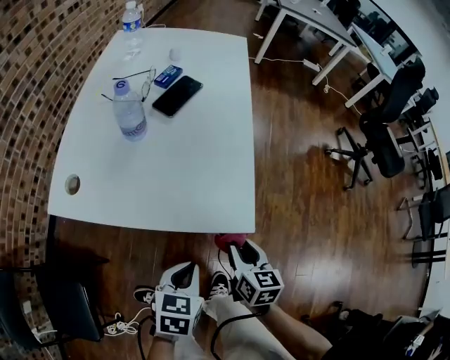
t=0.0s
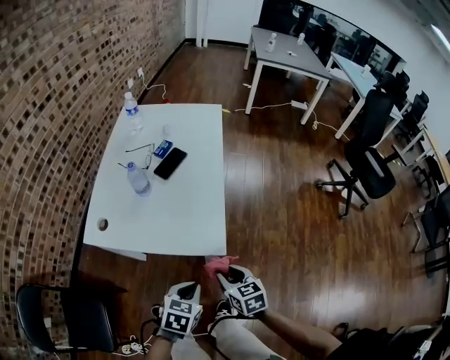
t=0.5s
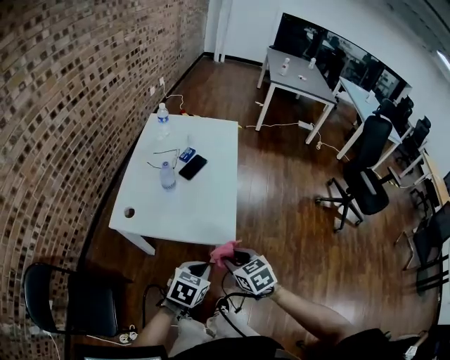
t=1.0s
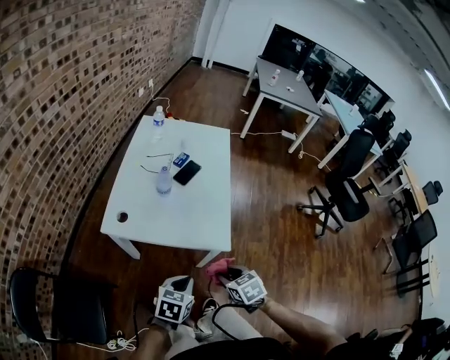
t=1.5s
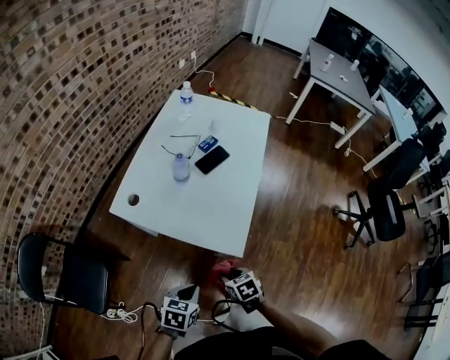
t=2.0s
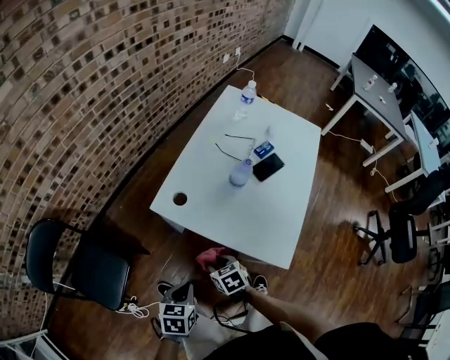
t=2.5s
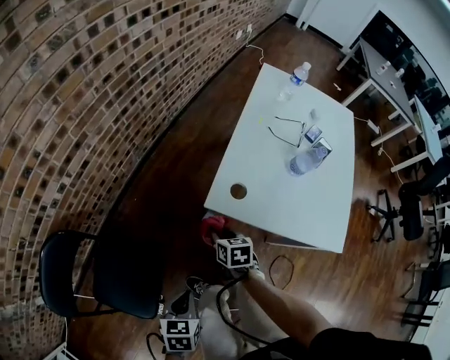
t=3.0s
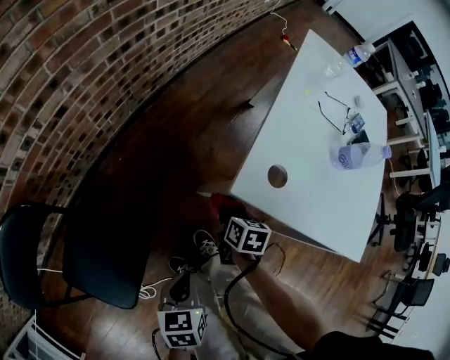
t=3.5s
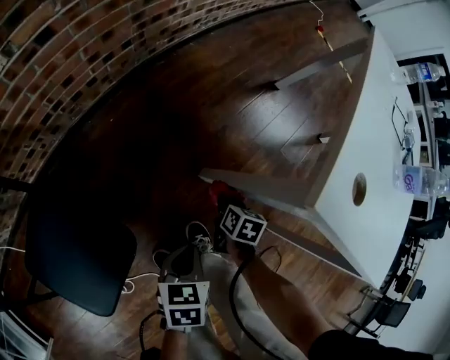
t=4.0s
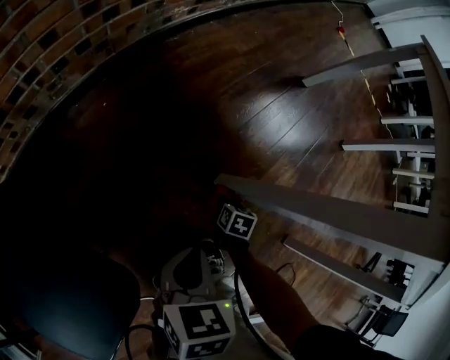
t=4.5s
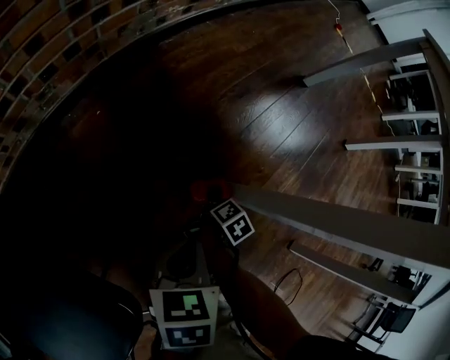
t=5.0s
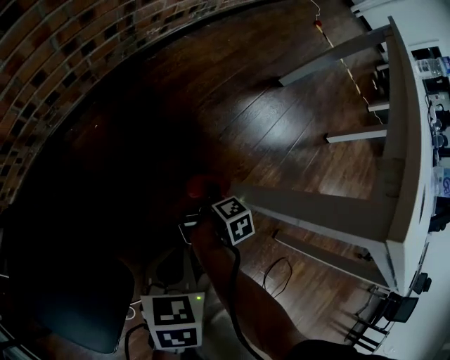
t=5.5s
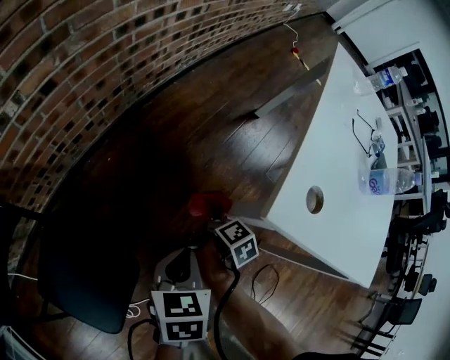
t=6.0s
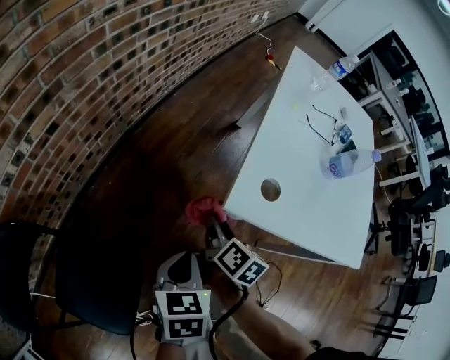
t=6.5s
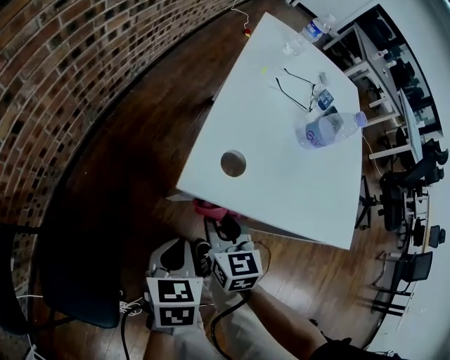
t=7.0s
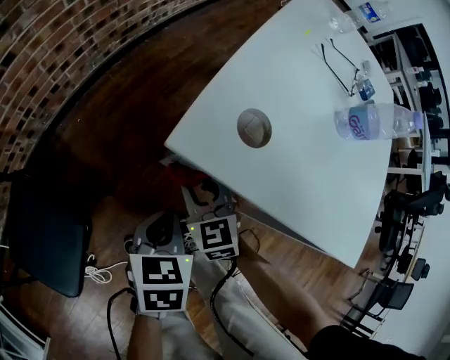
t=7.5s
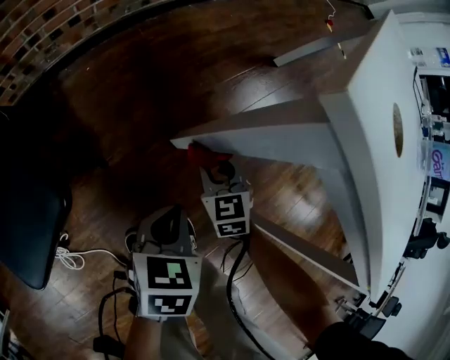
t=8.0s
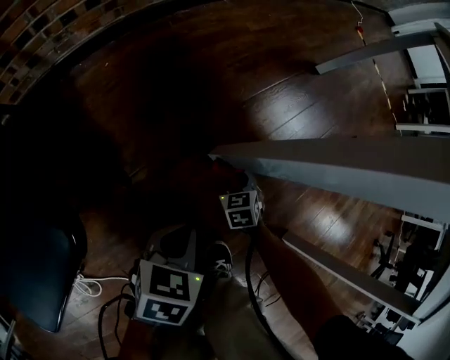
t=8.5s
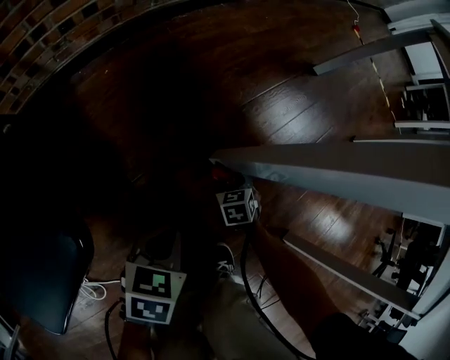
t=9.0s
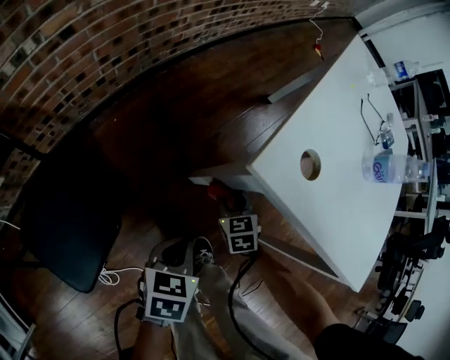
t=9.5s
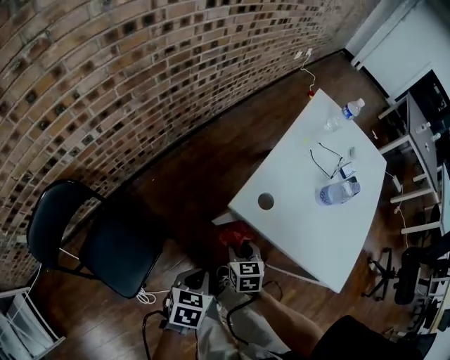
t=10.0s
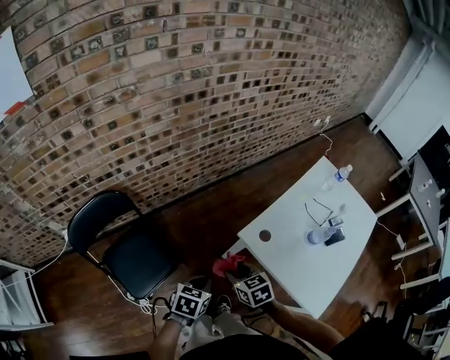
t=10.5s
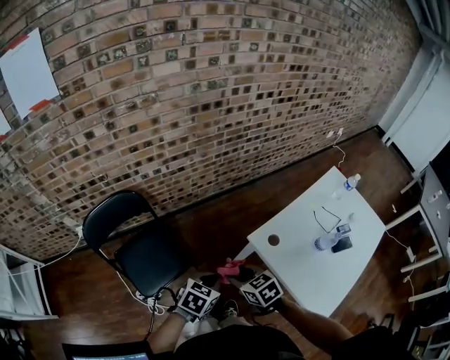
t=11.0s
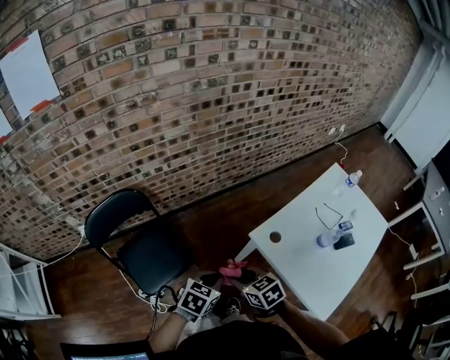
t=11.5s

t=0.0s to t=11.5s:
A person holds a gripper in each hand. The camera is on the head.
t=0.0s to t=2.0s: The two grippers go approximately 15 cm upward. The right gripper changes its angle by roughly 50 degrees.
t=2.0s to t=4.0s: Both grippers are carried to the left and forward, some 50 cm. The two grippers go approximately 40 cm downward. The left gripper rotates about 30 degrees, while the right gripper rotates approximately 20 degrees.
t=4.0s to t=6.0s: The right gripper reaches about 30 cm downward, then returns, and rotates around the line of its fingers by about 50 degrees, clockwise from behind. The left gripper is displaced upward and forward by approximately 15 cm.
t=6.0s to t=7.5s: The right gripper heads upward and to the right, covering roughly 10 cm, and rolls counterclockwise, seen from behind, by roughly 90 degrees; the left gripper shifts about 15 cm to the right.
t=7.5s to t=9.5s: The left gripper moves backward and to the left, about 10 cm, and moves about 35 cm downward and comes back, while the right gripper goes downward and returns, approximately 50 cm each way.
t=9.5s to t=11.5s: Both grippers move upward, roughly 40 cm. The right gripper turns by about 40 degrees.

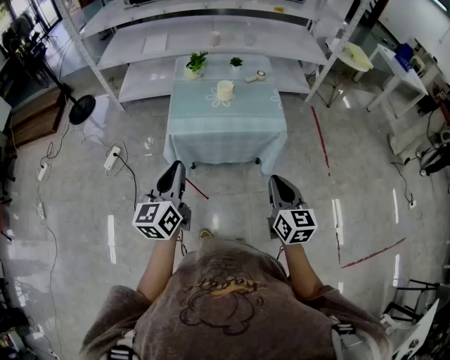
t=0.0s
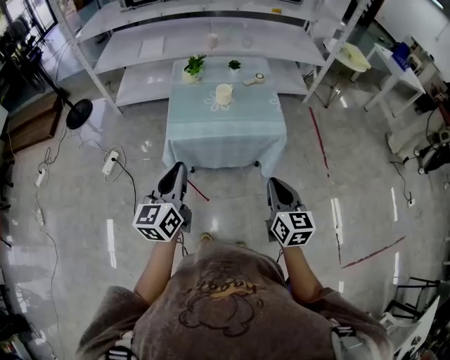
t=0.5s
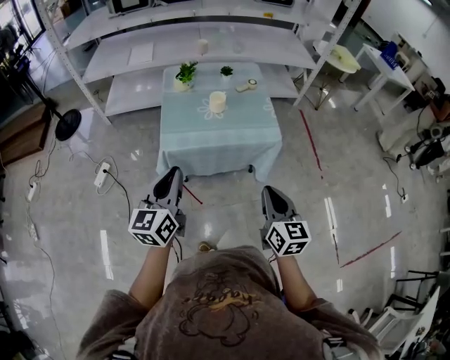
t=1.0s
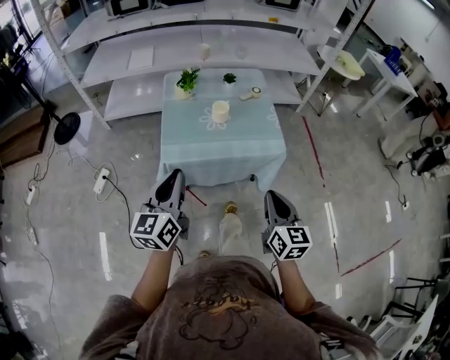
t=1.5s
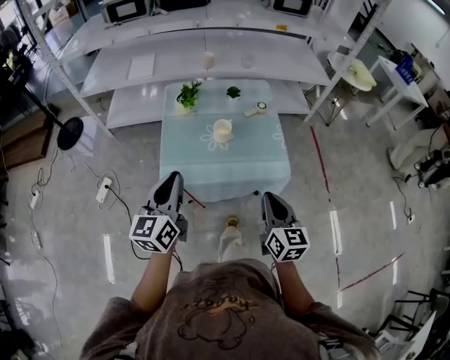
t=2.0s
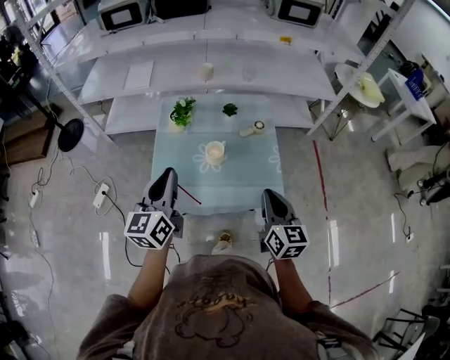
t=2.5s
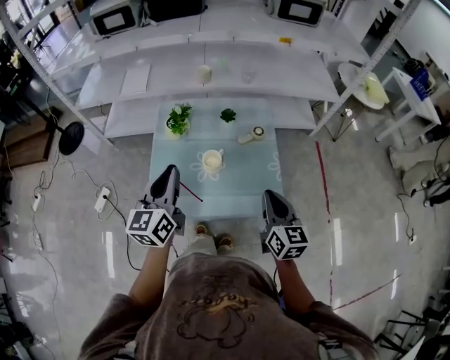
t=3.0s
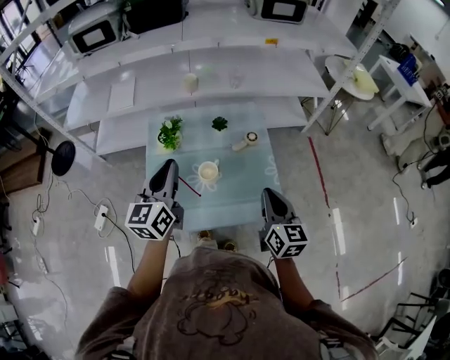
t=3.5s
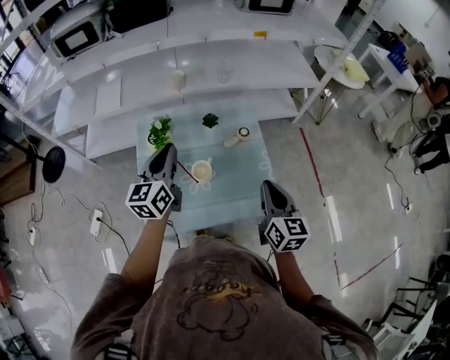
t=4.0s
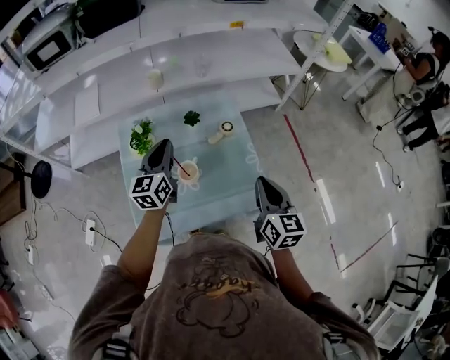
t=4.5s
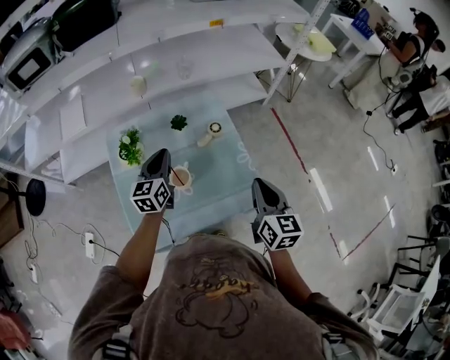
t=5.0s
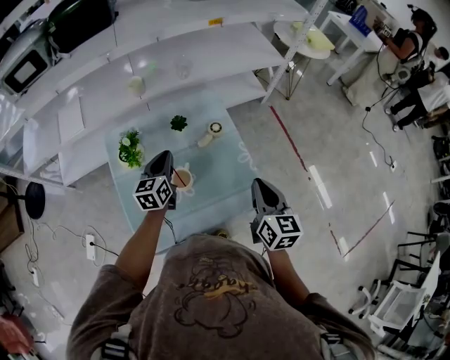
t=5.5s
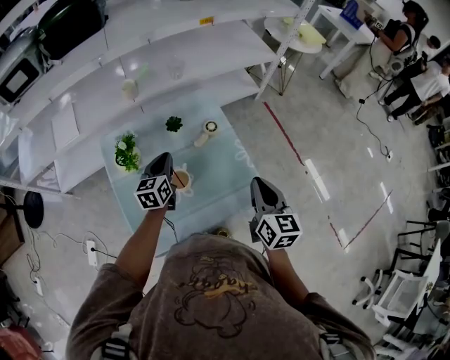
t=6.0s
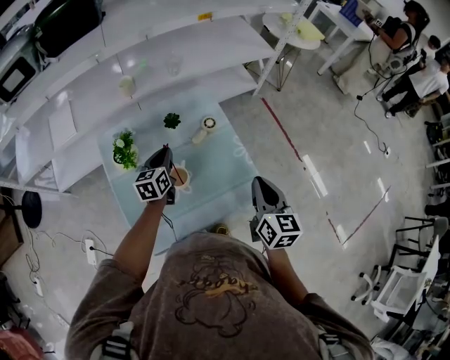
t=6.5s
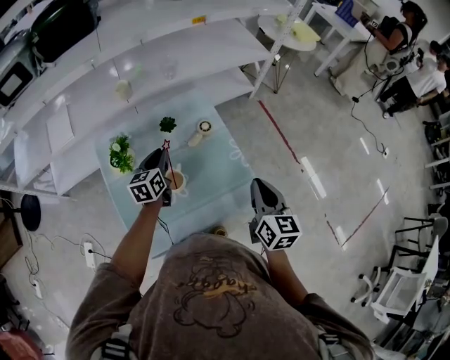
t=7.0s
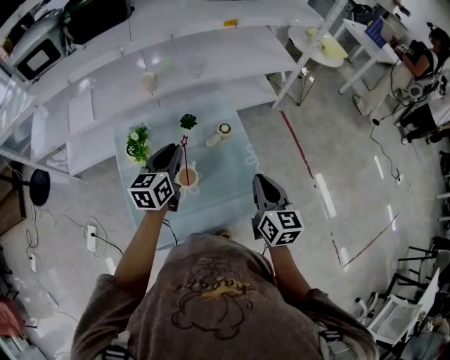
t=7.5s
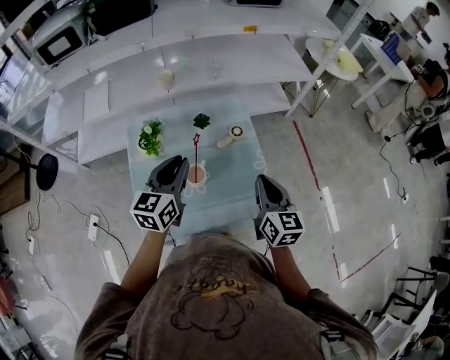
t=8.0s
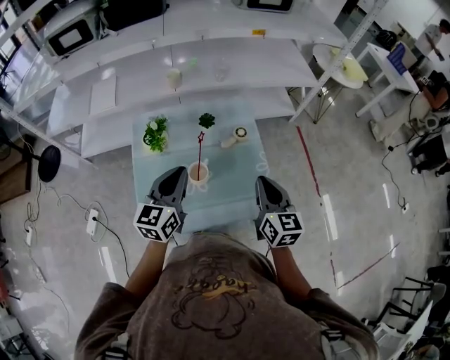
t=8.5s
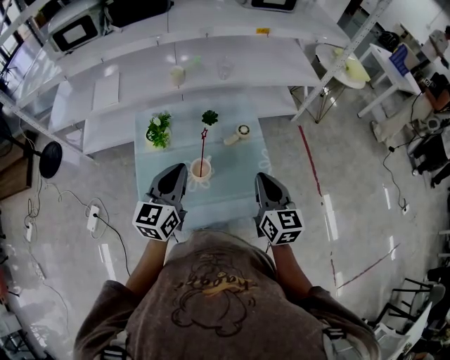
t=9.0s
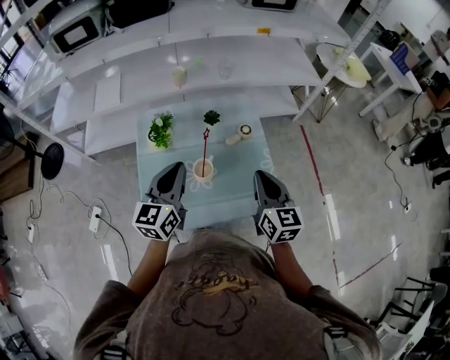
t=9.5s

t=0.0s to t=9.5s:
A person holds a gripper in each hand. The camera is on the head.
t=0.0s to t=2.0s: The grippers both shift forward by about 20 cm.
t=2.0s to t=4.0s: The grippers both shift forward by some 30 cm.
t=4.0s to t=5.5s: The left gripper travels downward and forward by about 15 cm.
t=5.5s to t=7.5s: The left gripper moves upward, some 5 cm.
t=7.5s to t=9.5s: The left gripper travels backward and upward by about 10 cm; the right gripper is displaced to the left by roughly 5 cm.

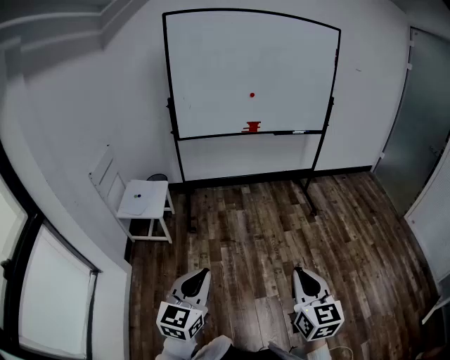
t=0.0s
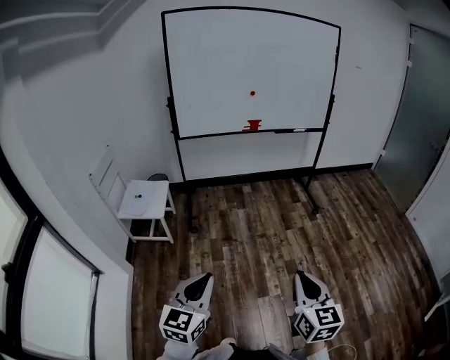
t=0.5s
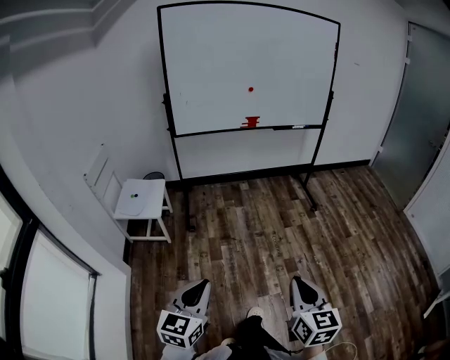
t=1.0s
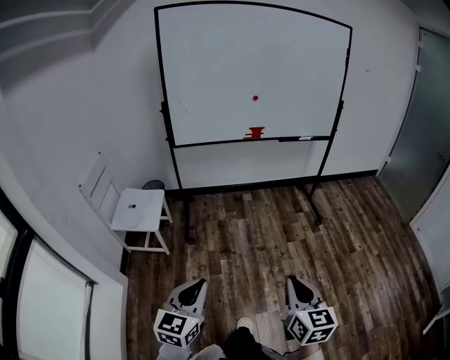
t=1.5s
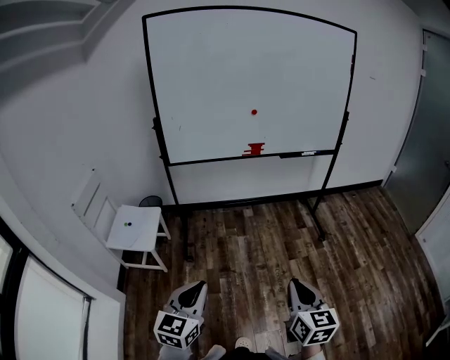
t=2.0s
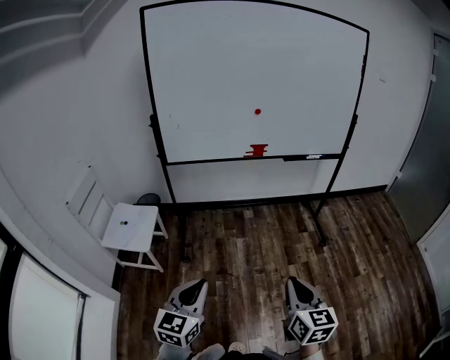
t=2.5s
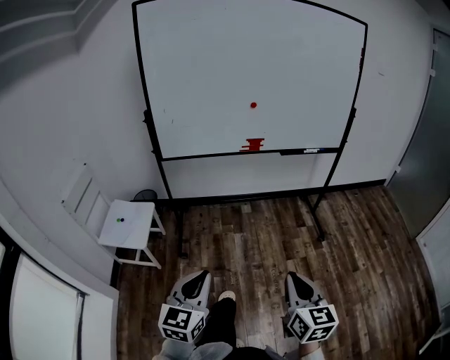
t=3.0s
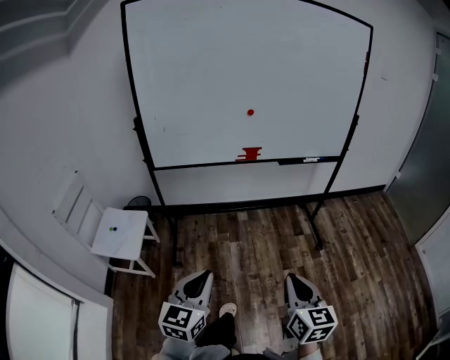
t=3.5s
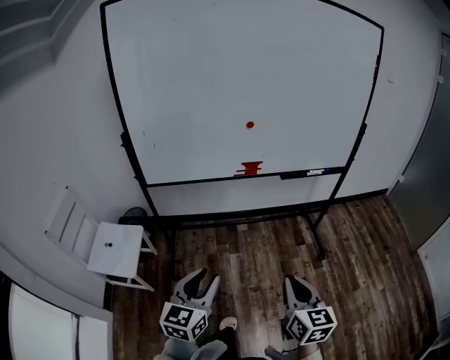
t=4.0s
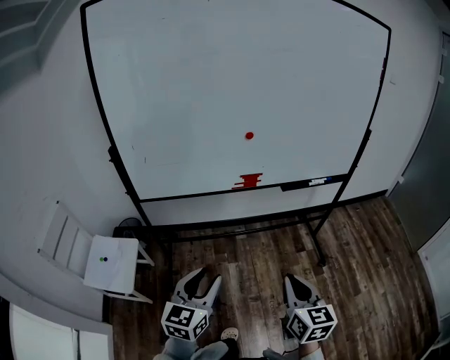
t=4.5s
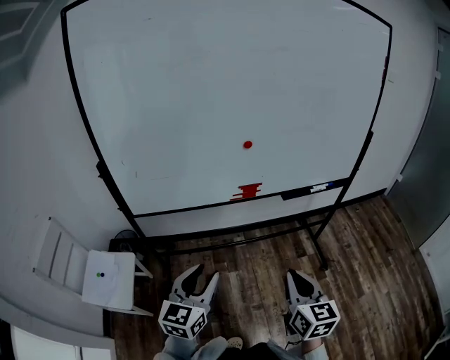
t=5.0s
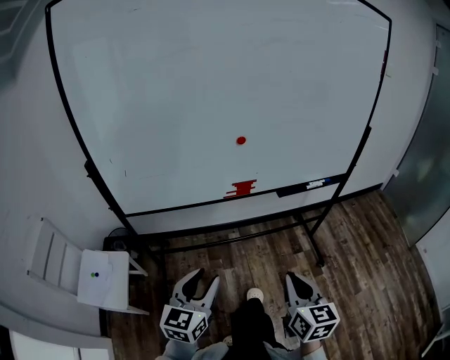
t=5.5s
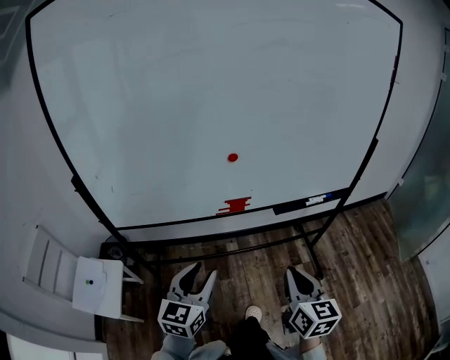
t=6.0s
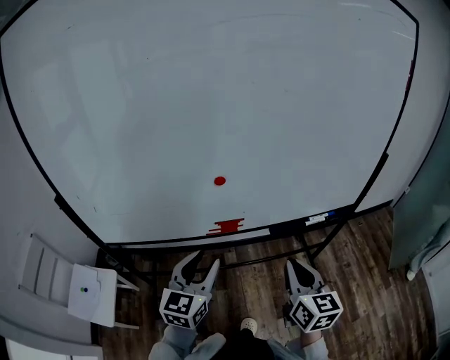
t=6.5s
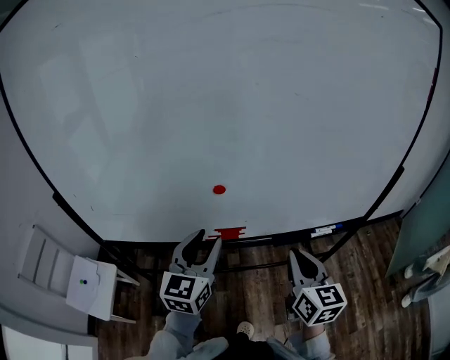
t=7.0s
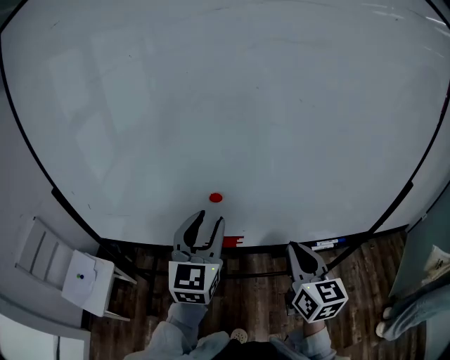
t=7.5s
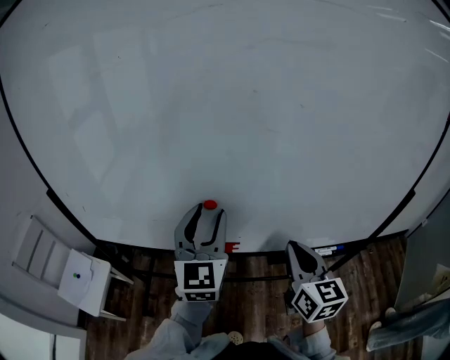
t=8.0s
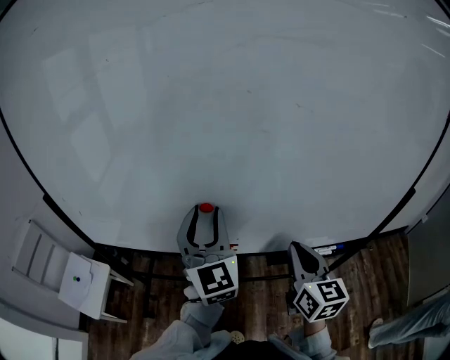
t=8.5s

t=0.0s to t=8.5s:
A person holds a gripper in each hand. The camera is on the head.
t=0.0s to t=2.0s: Both grippers move forward, roughly 20 cm.
t=2.0s to t=4.0s: The two grippers go about 25 cm forward. The left gripper opens up.
t=4.0s to t=6.5s: The grippers both shift forward by about 35 cm.
t=6.5s to t=8.5s: The right gripper heads forward, covering some 15 cm, while the left gripper is displaced forward and upward by roughly 20 cm, and swivels some 40 degrees.
